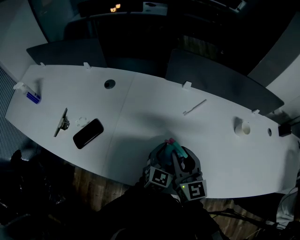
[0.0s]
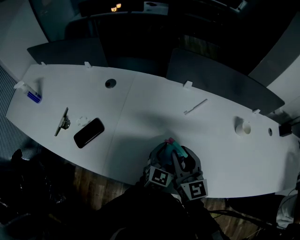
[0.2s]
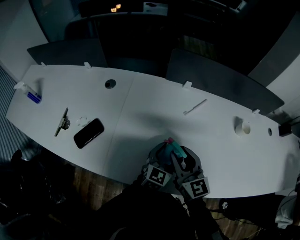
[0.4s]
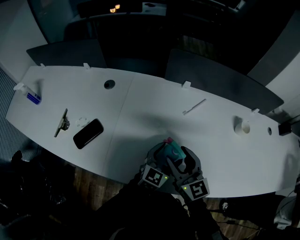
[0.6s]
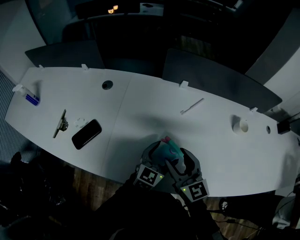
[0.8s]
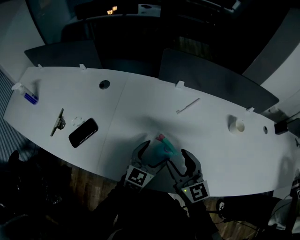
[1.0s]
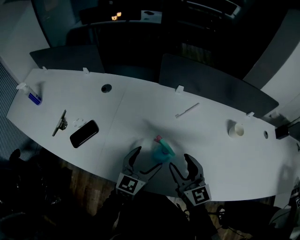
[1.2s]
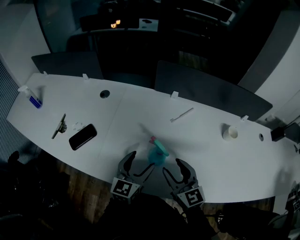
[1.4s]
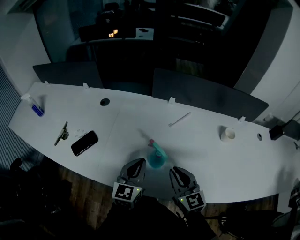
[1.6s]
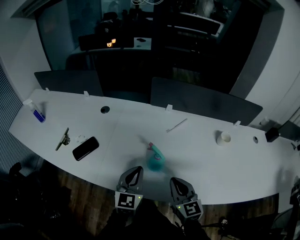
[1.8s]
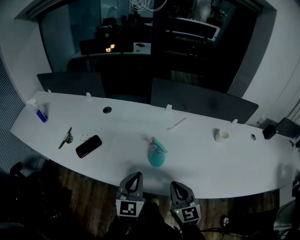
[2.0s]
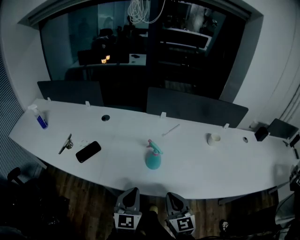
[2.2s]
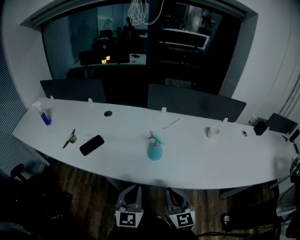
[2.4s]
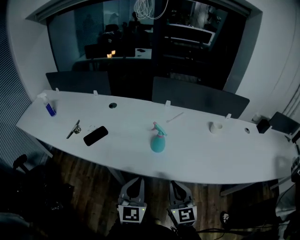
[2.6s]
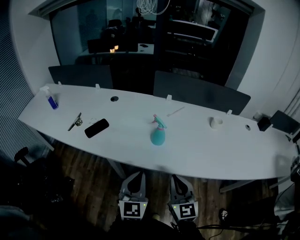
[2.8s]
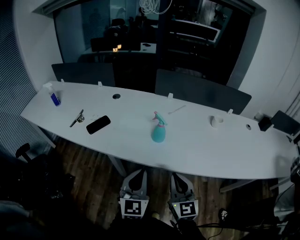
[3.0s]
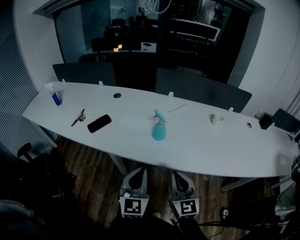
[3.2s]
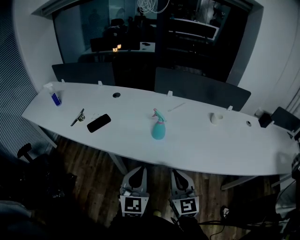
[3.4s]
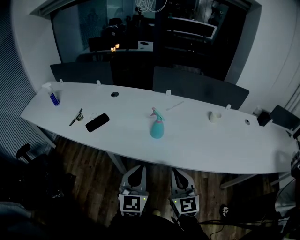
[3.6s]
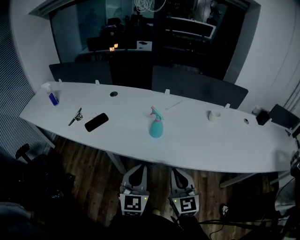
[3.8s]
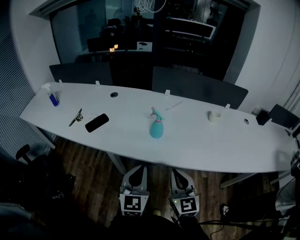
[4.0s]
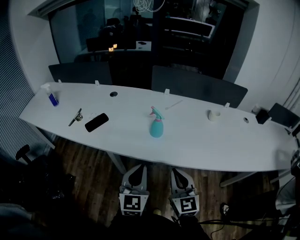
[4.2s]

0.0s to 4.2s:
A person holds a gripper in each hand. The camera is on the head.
0.0s to 1.4s: The left gripper shifts about 10 cm to the left and upward; the right gripper goes some 5 cm backward, and opens.
1.4s to 2.8s: The two grippers go approximately 25 cm backward. The left gripper closes up. Meanwhile the right gripper closes up.
2.8s to 4.2s: There are only small adjustments of the grippers.

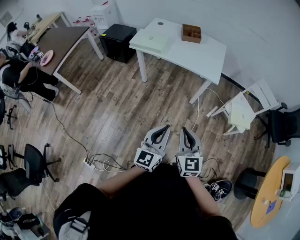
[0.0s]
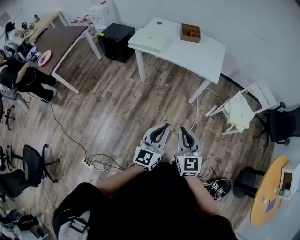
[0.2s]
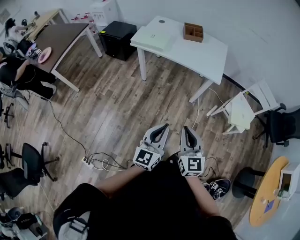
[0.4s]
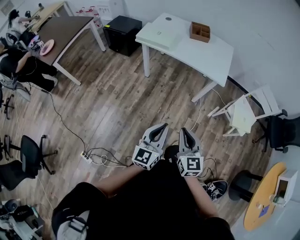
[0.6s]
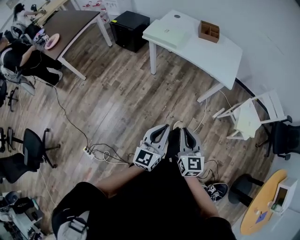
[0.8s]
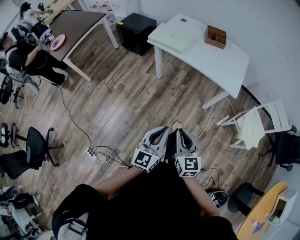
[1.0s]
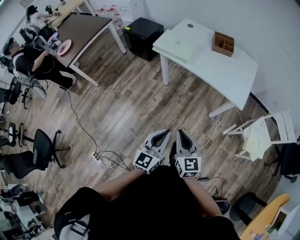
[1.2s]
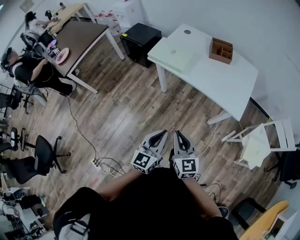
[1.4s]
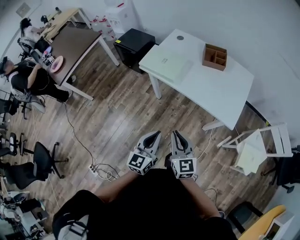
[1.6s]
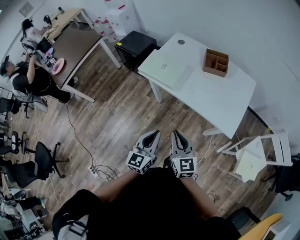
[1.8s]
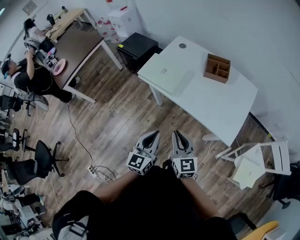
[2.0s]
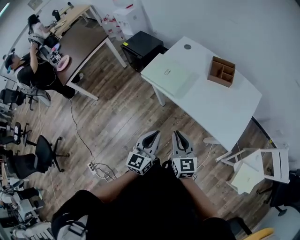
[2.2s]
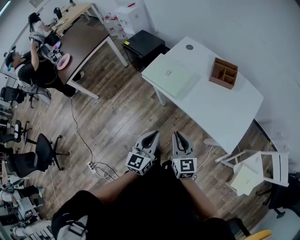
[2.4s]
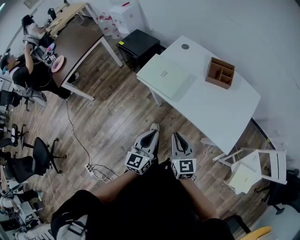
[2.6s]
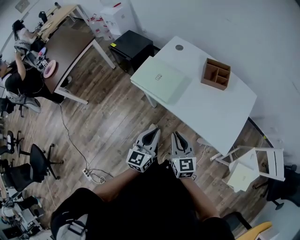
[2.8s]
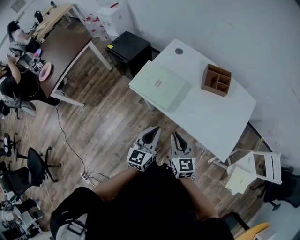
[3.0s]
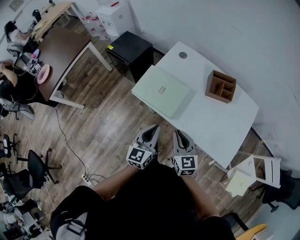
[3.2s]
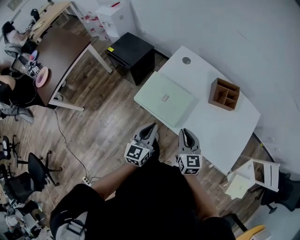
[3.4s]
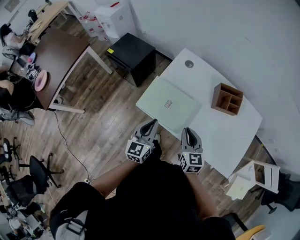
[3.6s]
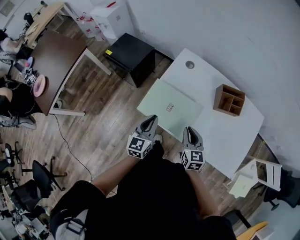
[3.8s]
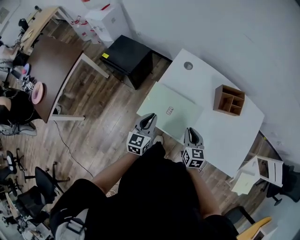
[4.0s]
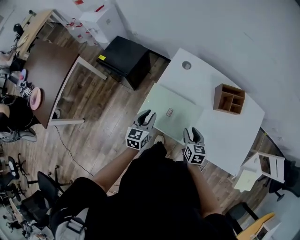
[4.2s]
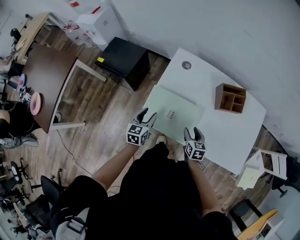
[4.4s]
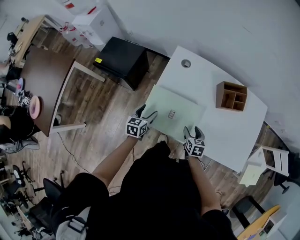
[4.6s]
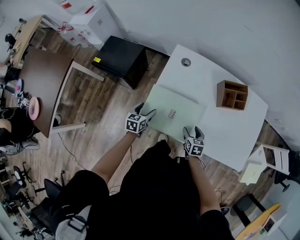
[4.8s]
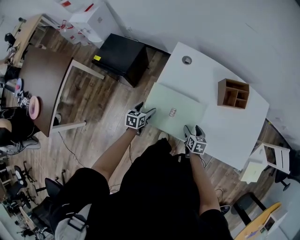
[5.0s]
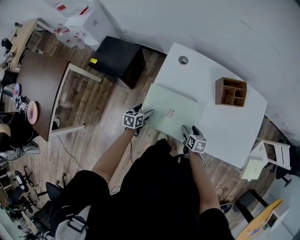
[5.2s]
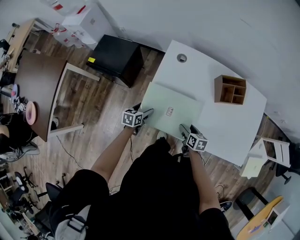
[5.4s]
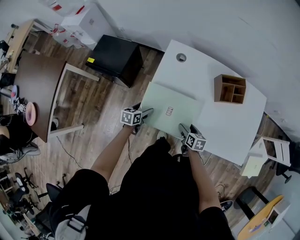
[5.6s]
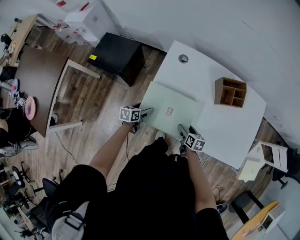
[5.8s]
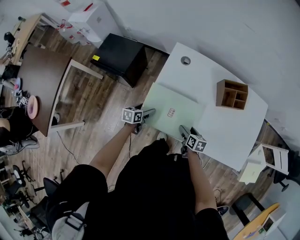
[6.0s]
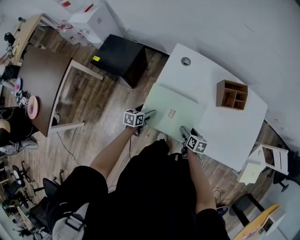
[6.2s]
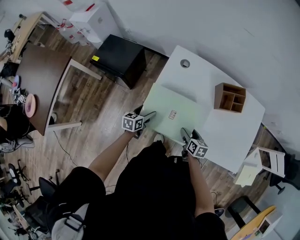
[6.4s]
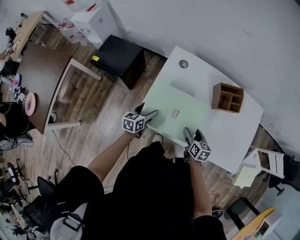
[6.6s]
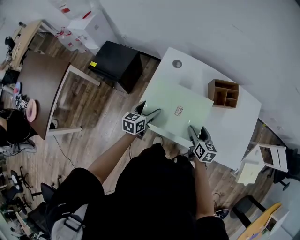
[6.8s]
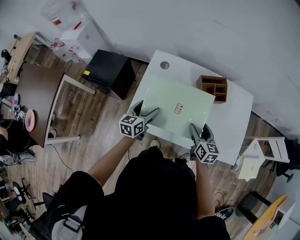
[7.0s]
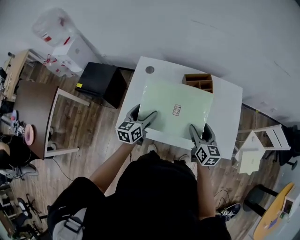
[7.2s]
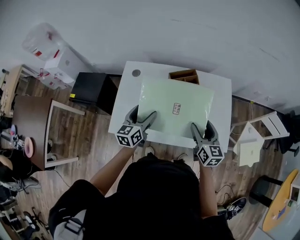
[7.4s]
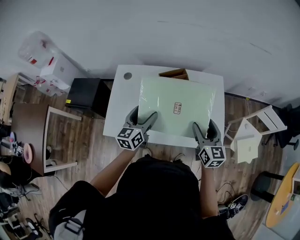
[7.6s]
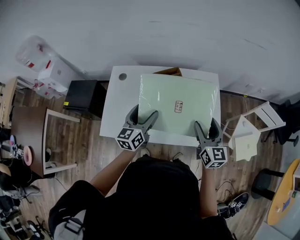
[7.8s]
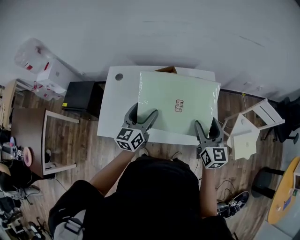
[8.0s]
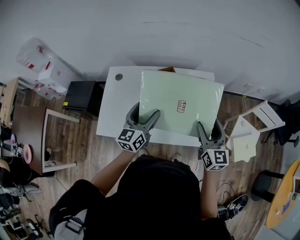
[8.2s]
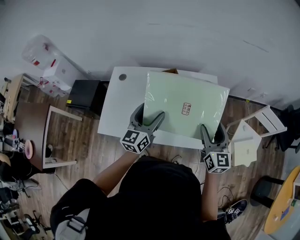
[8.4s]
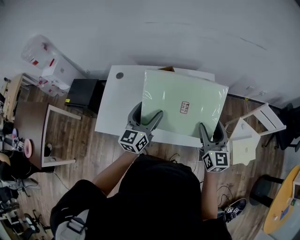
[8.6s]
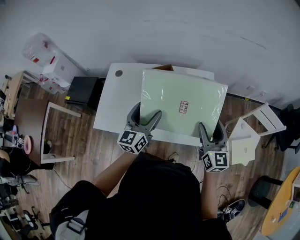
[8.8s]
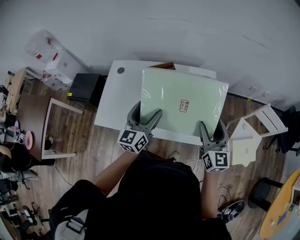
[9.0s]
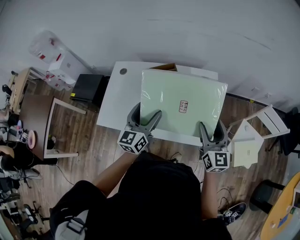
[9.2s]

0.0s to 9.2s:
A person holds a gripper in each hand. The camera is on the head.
0.0s to 1.6s: Both grippers travel together forward, approximately 30 cm. The right gripper turns by some 20 degrees.
1.6s to 3.0s: The two grippers go some 25 cm forward.
3.0s to 4.6s: The right gripper is displaced forward and downward by approximately 30 cm, swivels about 40 degrees, and opens its fingers. Meanwhile the left gripper moves forward, to the left and downward, approximately 40 cm, swivels approximately 30 degrees, and opens its fingers.
4.6s to 6.2s: The left gripper is displaced downward by approximately 10 cm.
6.2s to 7.6s: The right gripper heads upward and to the right, covering roughly 40 cm, and points its fingers about 30 degrees further upward. The left gripper travels to the right and upward by about 40 cm, and angles its fingers upward, by some 30 degrees.
7.6s to 9.2s: The grippers both shift to the right by approximately 15 cm.

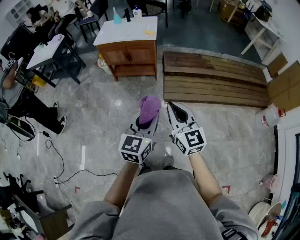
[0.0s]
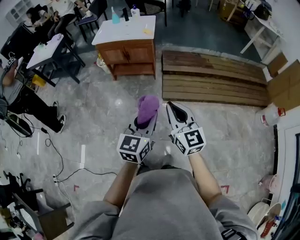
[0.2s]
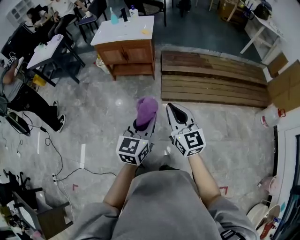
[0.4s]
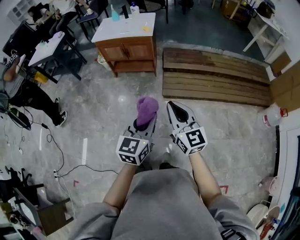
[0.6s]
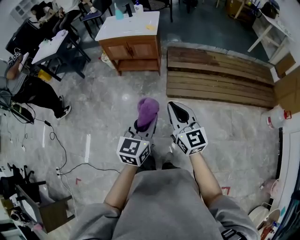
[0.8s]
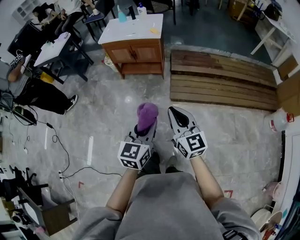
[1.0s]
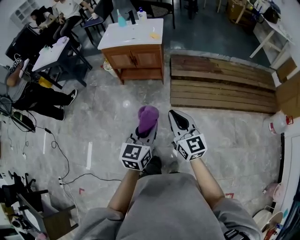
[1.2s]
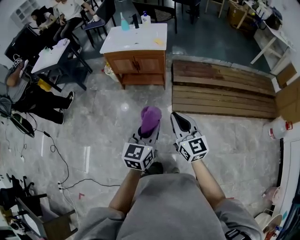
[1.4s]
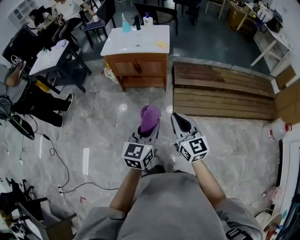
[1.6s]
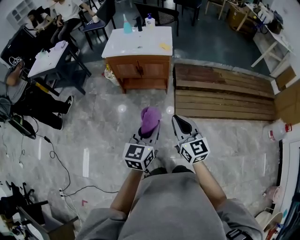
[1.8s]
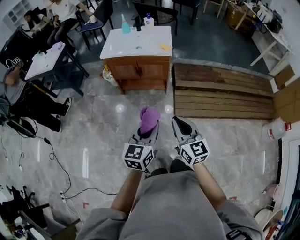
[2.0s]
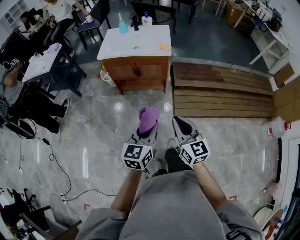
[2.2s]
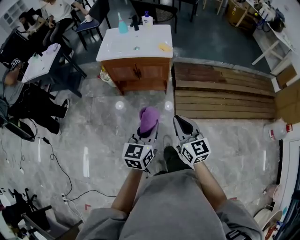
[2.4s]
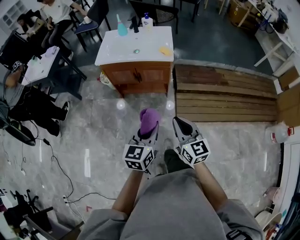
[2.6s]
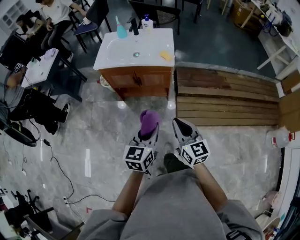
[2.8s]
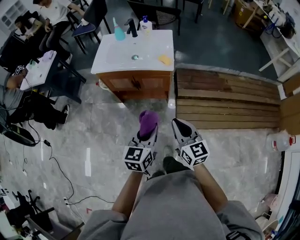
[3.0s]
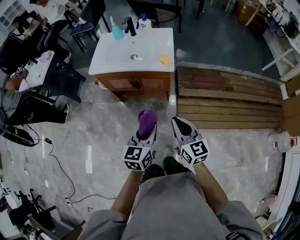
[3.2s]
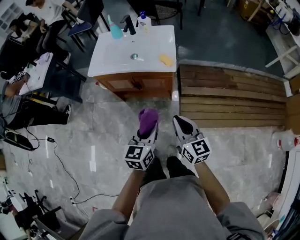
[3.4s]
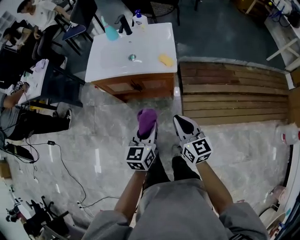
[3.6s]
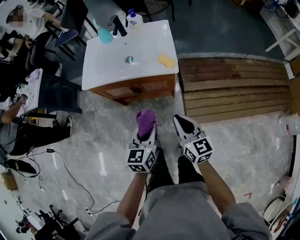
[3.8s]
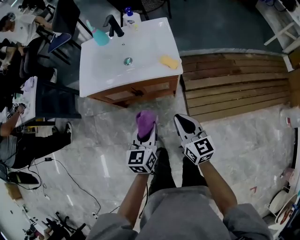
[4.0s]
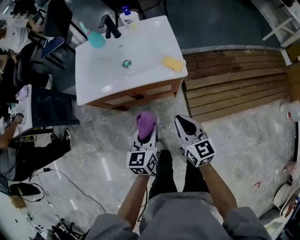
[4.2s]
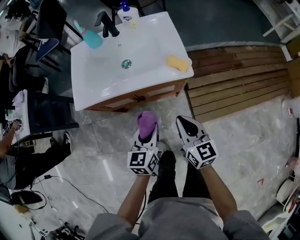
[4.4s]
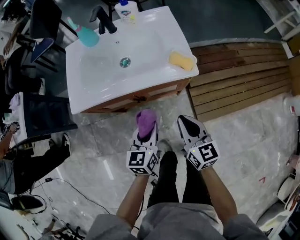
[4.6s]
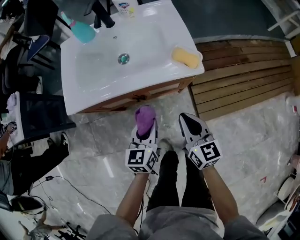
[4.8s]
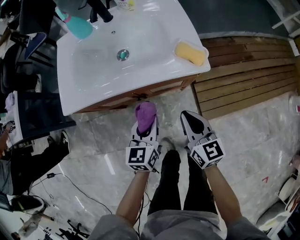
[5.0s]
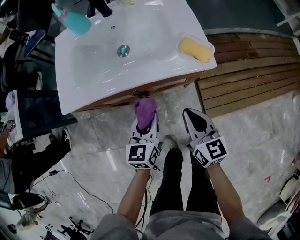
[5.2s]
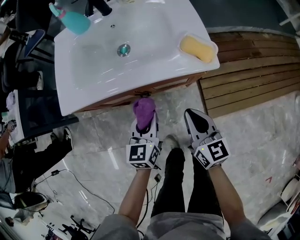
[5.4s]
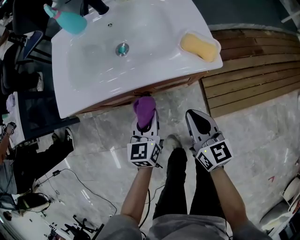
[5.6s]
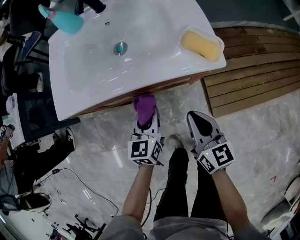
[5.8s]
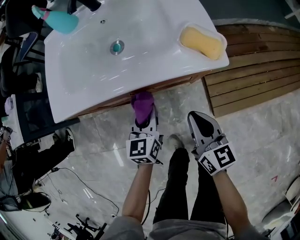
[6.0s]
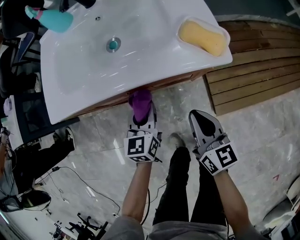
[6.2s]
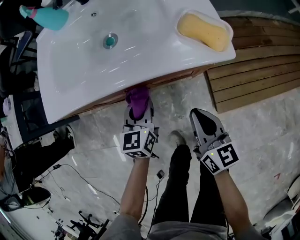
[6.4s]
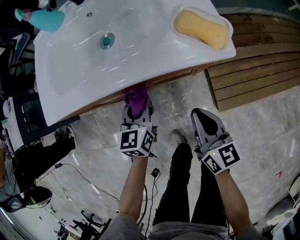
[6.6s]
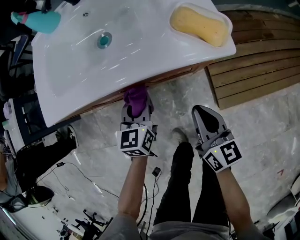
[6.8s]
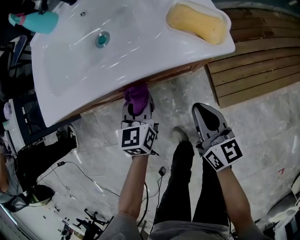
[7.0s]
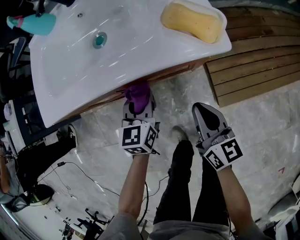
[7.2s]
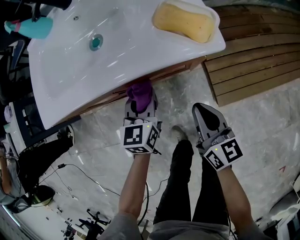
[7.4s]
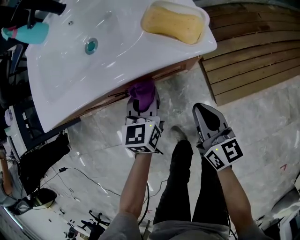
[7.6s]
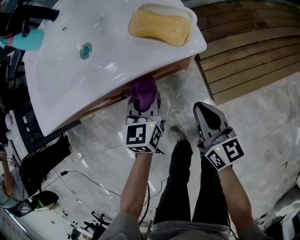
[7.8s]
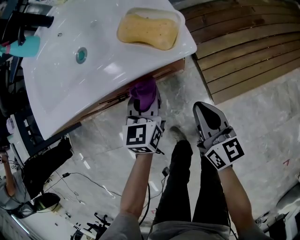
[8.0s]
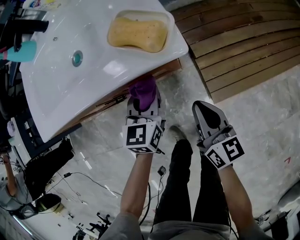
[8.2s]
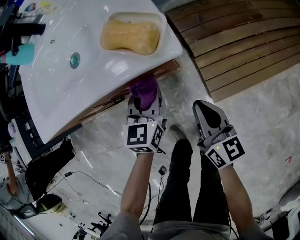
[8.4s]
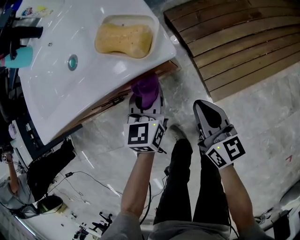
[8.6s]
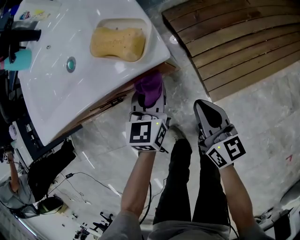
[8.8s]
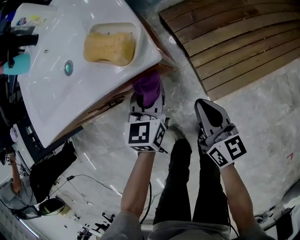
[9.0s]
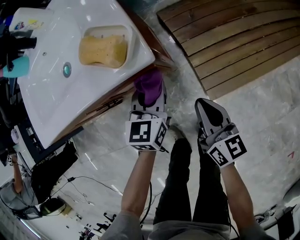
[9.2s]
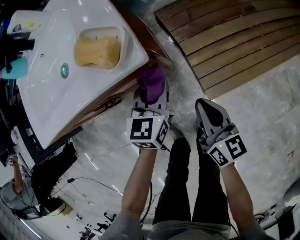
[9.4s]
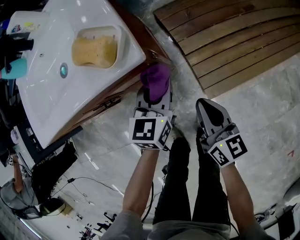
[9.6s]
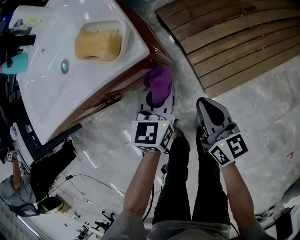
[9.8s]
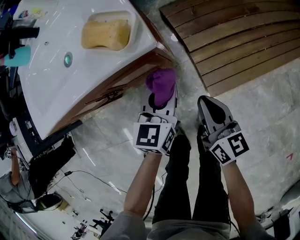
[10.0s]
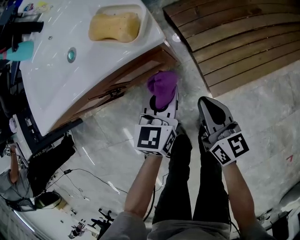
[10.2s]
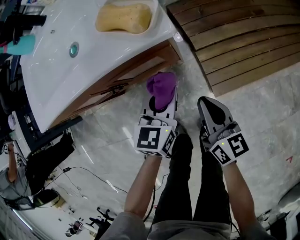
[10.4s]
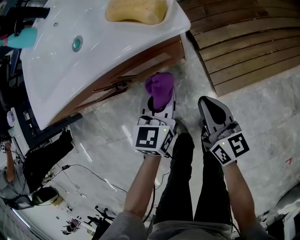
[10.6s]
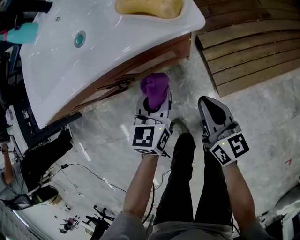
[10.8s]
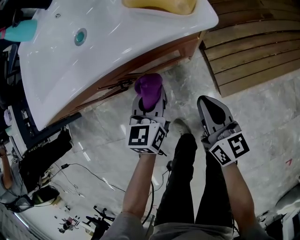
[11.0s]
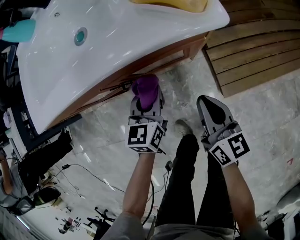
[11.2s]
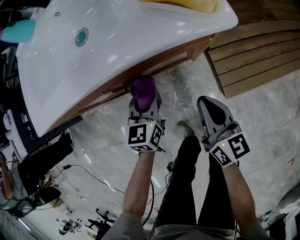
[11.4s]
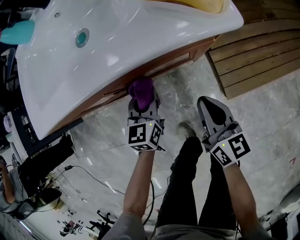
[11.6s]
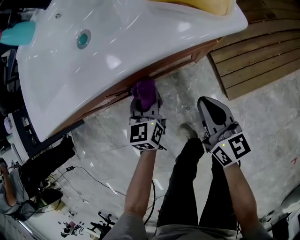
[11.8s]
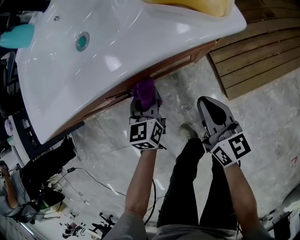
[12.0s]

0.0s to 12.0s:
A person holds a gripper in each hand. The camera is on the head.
0.0s to 1.6s: Both grippers travel together forward and to the left, roughly 15 cm.
1.6s to 3.0s: The grippers both shift forward by roughly 25 cm.
3.0s to 4.4s: Both grippers travel together forward, downward and to the left, about 30 cm.
4.4s to 6.0s: The left gripper shifts approximately 20 cm downward and forward. The right gripper travels downward by some 15 cm.
6.0s to 7.6s: The right gripper heads to the right and downward, covering approximately 10 cm. Meanwhile the left gripper heads to the right, covering some 5 cm.
7.6s to 9.0s: The grippers both shift to the right by some 10 cm.
9.0s to 10.4s: The left gripper shifts roughly 5 cm backward.
10.4s to 12.0s: The left gripper goes some 20 cm to the left and downward, while the right gripper heads to the left, covering some 10 cm.
